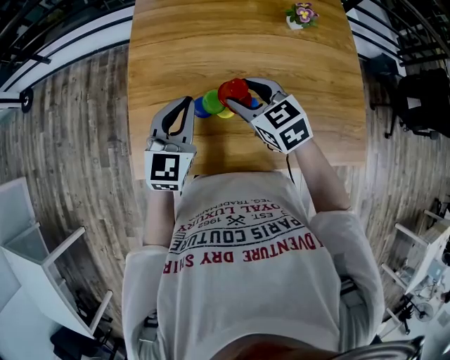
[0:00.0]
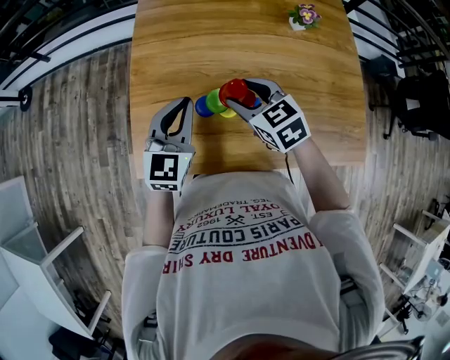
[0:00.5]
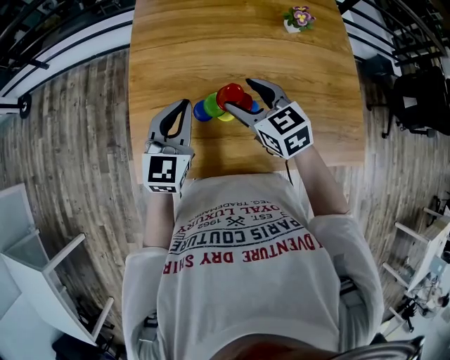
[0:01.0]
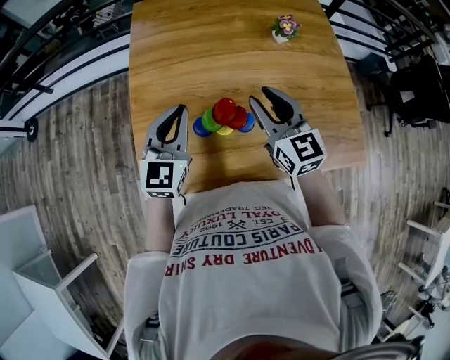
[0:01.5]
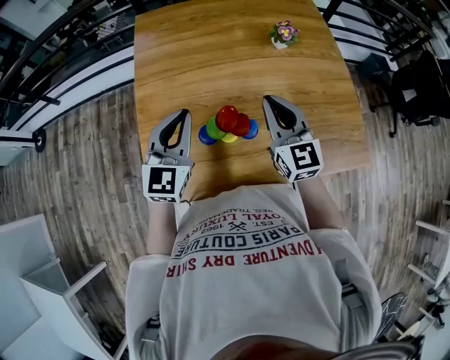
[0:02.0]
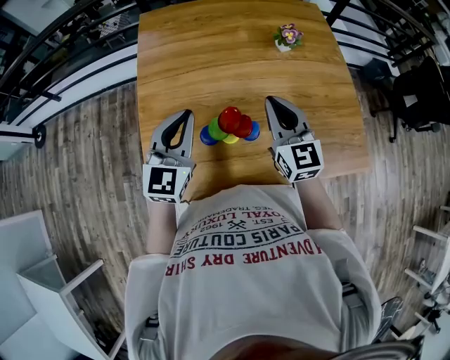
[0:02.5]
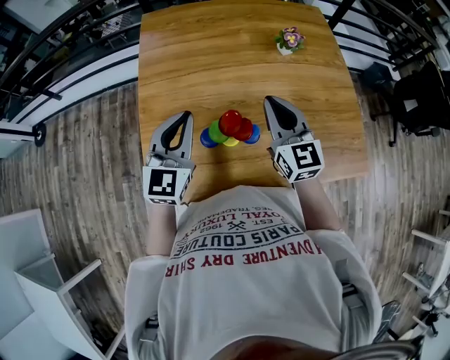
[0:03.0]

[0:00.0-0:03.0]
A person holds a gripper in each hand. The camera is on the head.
0:00.0 to 0:01.5: The right gripper heads upward and to the right, covering about 10 cm, and turns by approximately 30 degrees.
0:01.5 to 0:03.0: The right gripper closes up.

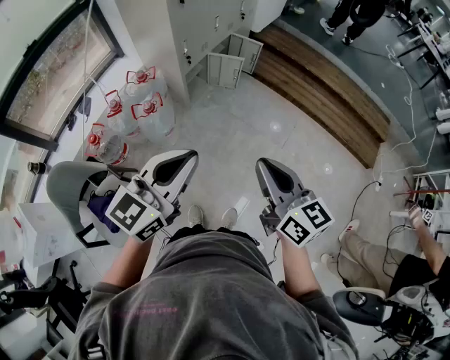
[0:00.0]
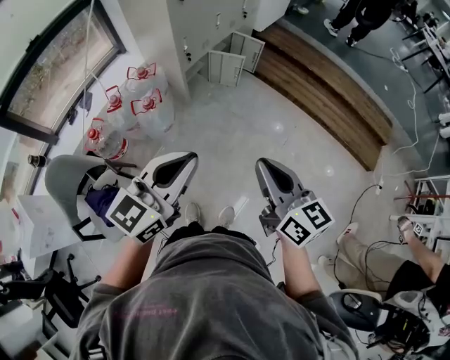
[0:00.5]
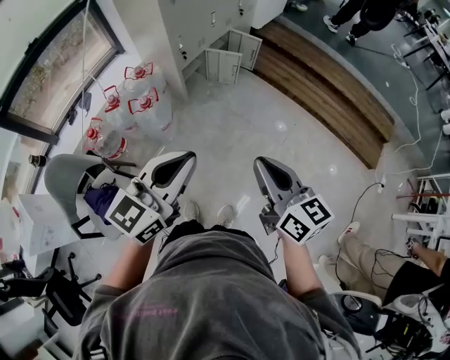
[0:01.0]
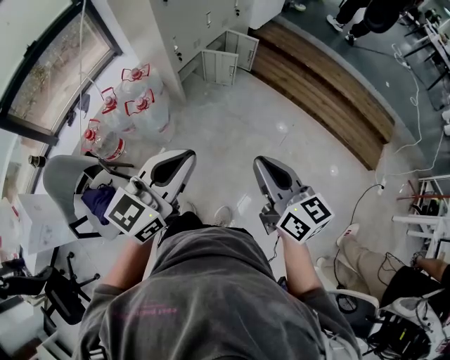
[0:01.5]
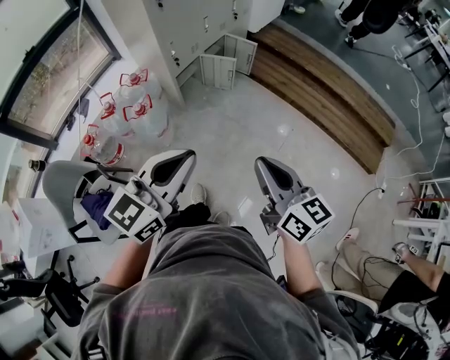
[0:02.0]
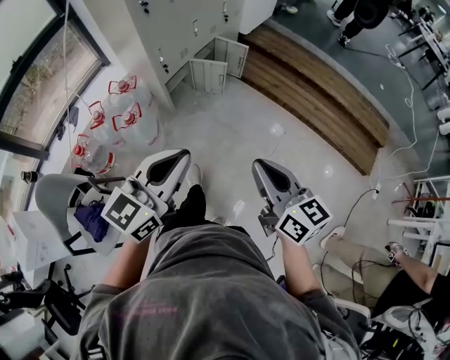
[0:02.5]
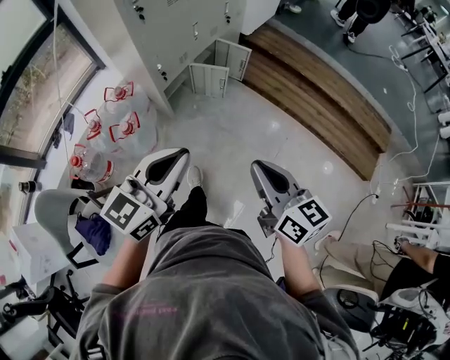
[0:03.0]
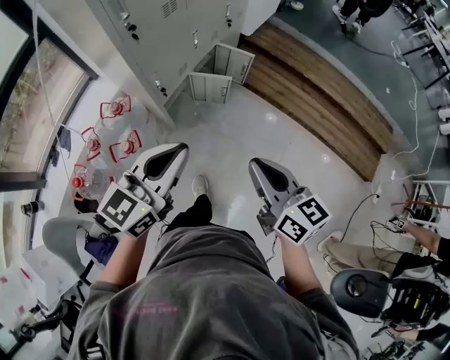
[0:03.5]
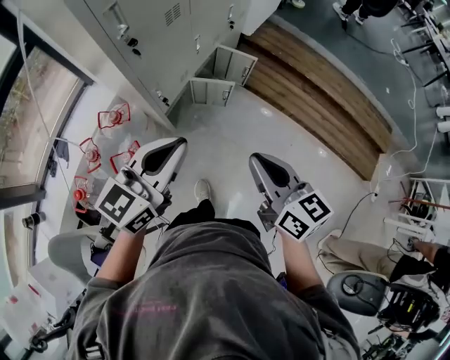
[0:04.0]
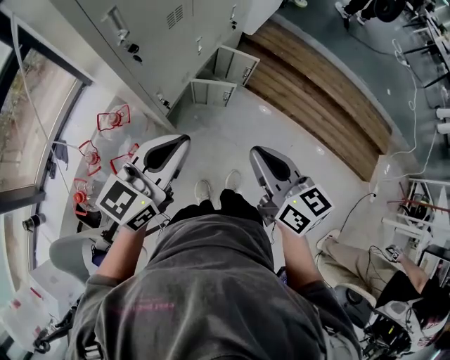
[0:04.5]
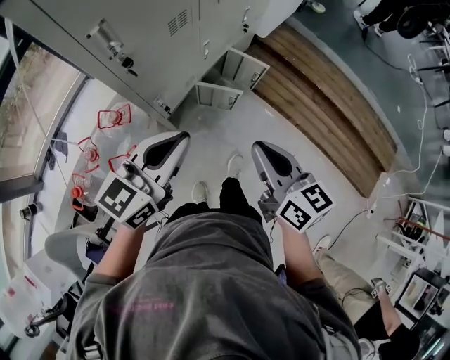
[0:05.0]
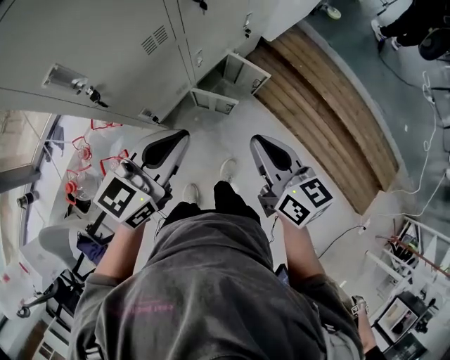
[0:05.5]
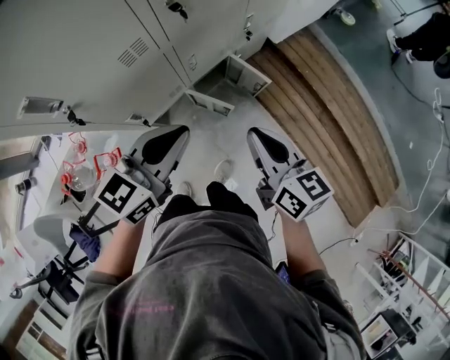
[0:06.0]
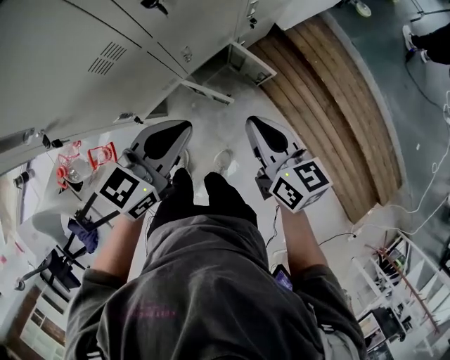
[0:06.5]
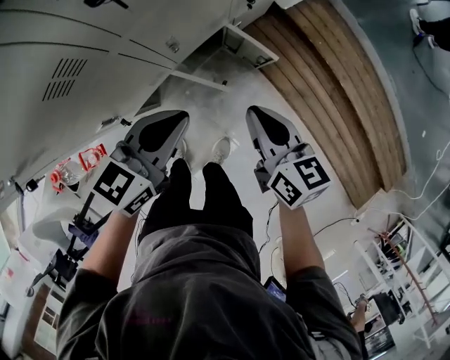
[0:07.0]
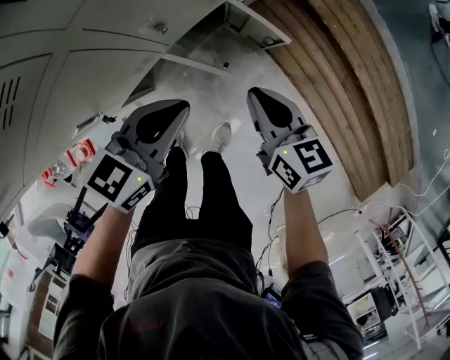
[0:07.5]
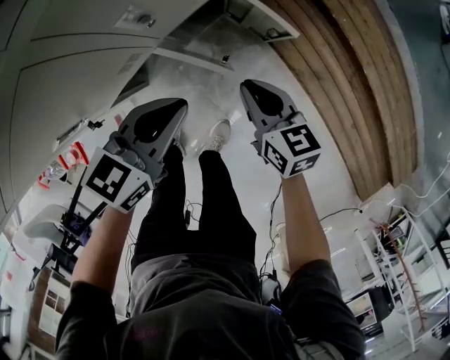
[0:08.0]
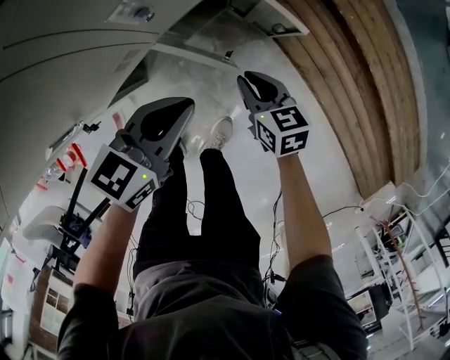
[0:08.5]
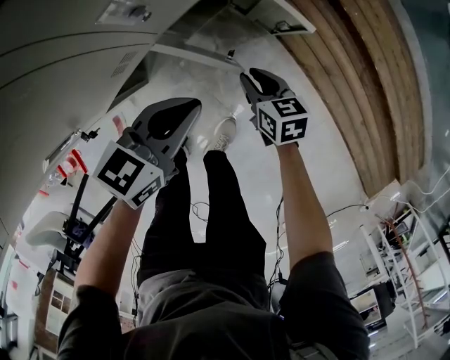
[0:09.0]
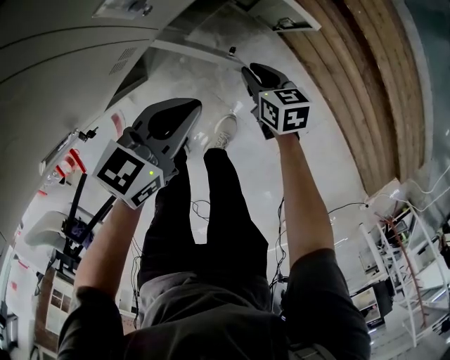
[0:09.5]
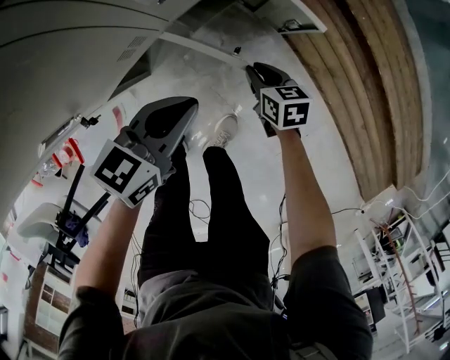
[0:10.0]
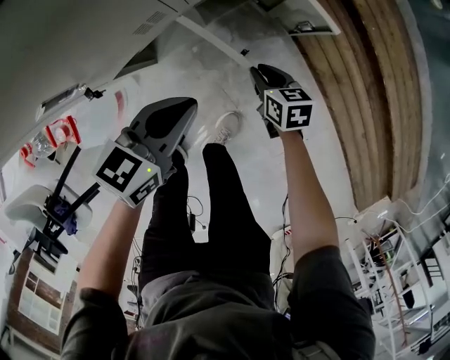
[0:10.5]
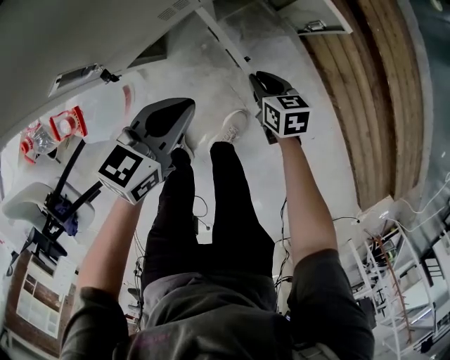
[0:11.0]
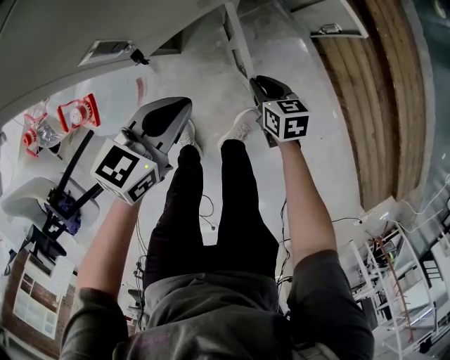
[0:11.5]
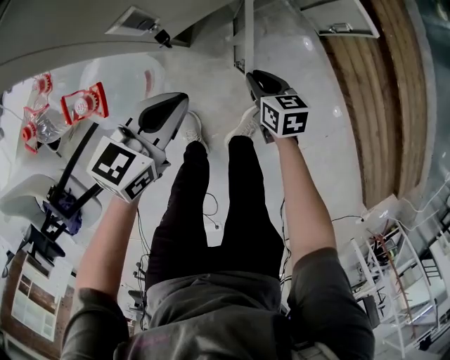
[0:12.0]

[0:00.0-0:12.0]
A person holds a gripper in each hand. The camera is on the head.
0:00.0 to 0:02.0: Both grippers travel together to the right, roughly 10 cm.
0:02.0 to 0:04.0: The two grippers go roughly 40 cm forward.
0:04.0 to 0:06.0: The two grippers go approximately 30 cm forward.
0:06.0 to 0:08.0: The grippers both shift downward by approximately 35 cm.
0:08.0 to 0:10.0: The right gripper moves downward, about 20 cm. The left gripper moves downward, some 10 cm.
0:10.0 to 0:12.0: The two grippers go roughly 25 cm to the left and backward.

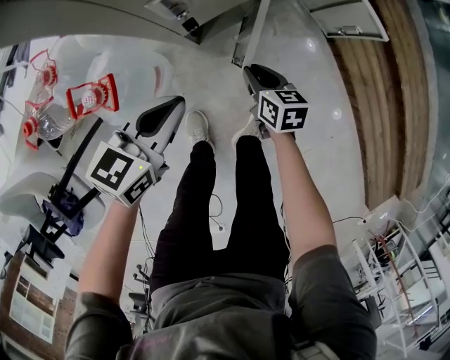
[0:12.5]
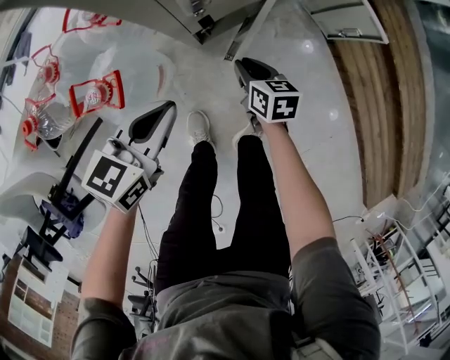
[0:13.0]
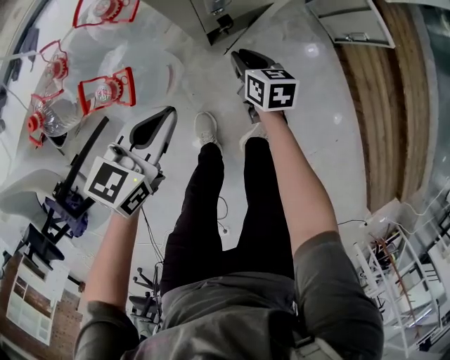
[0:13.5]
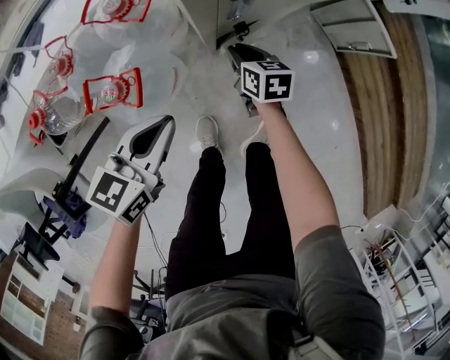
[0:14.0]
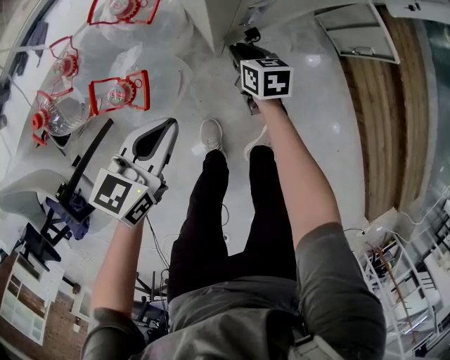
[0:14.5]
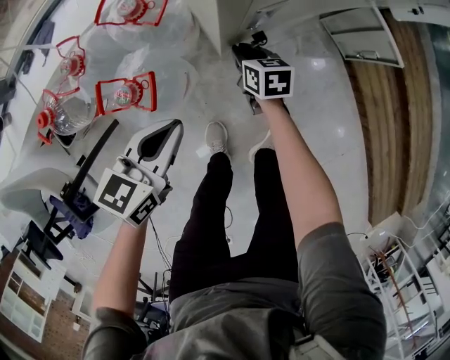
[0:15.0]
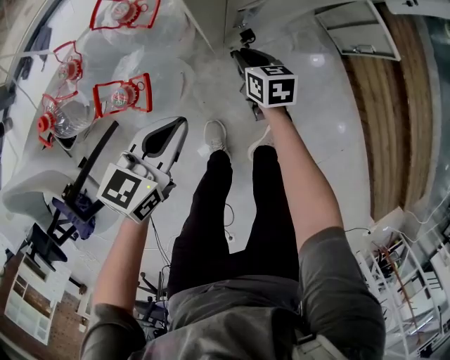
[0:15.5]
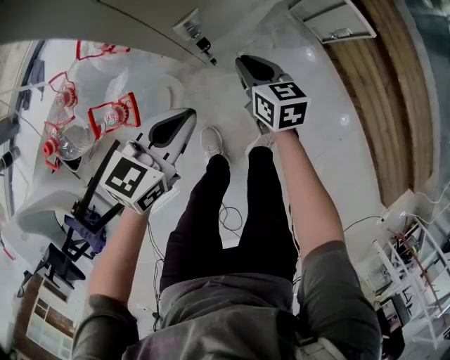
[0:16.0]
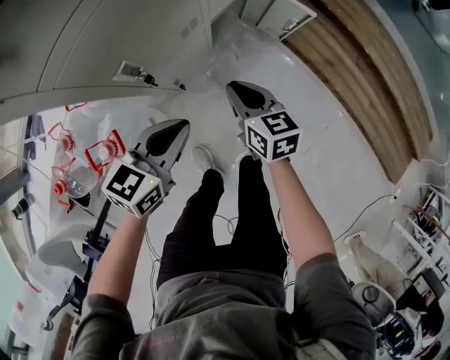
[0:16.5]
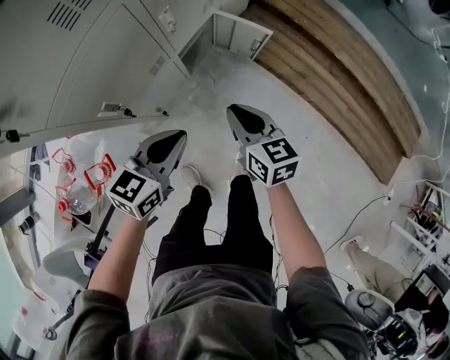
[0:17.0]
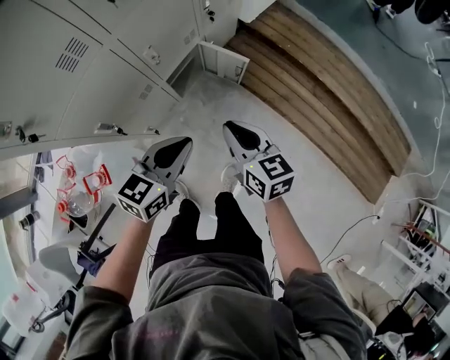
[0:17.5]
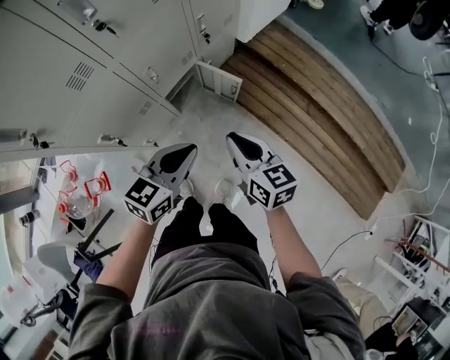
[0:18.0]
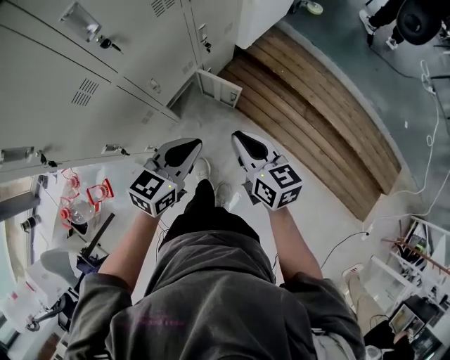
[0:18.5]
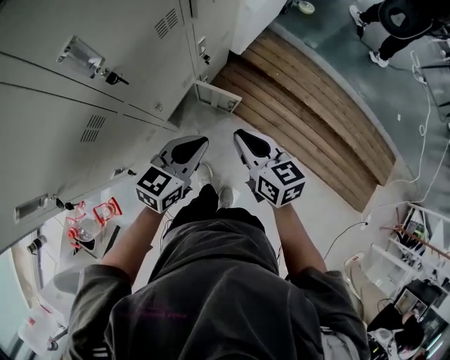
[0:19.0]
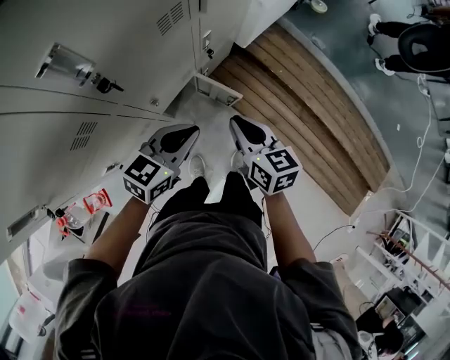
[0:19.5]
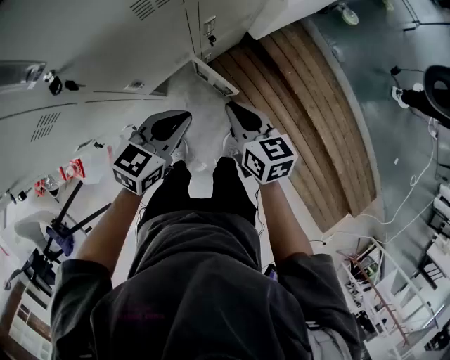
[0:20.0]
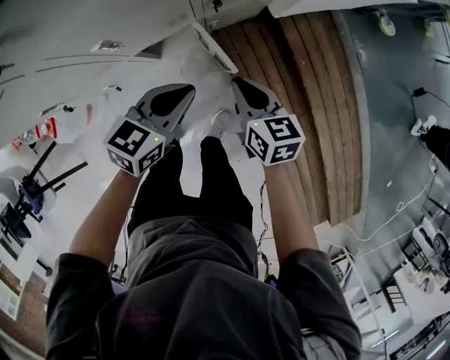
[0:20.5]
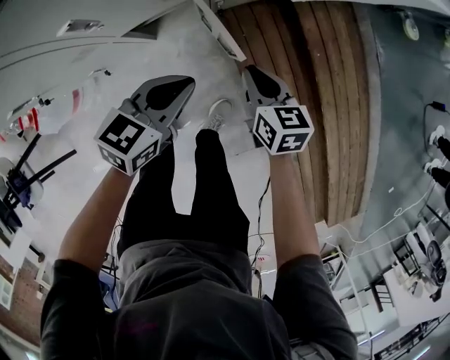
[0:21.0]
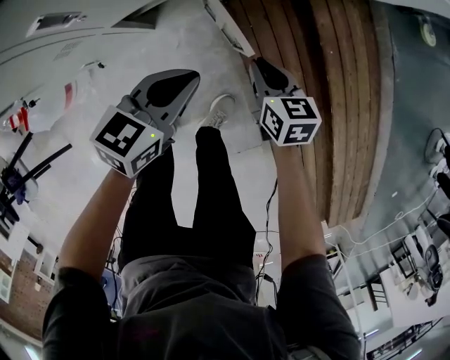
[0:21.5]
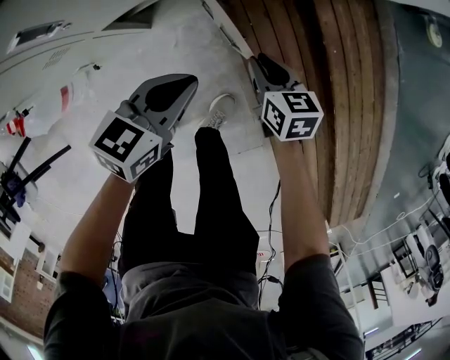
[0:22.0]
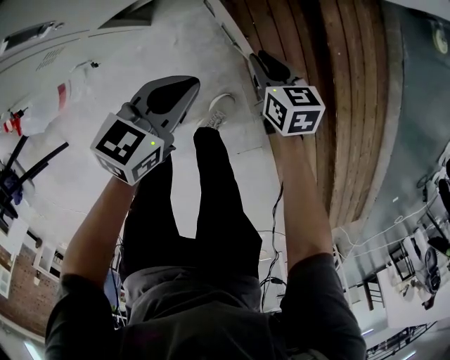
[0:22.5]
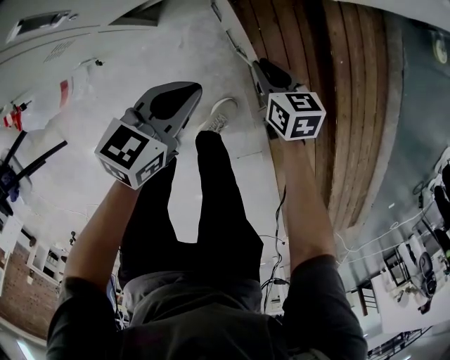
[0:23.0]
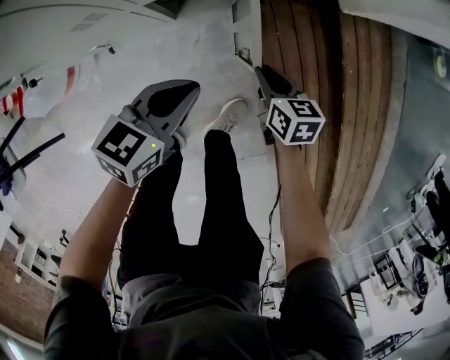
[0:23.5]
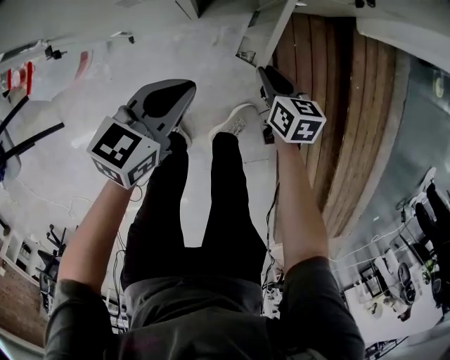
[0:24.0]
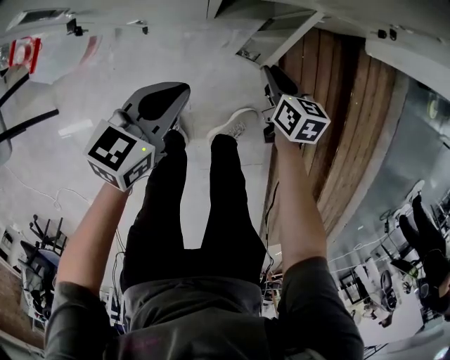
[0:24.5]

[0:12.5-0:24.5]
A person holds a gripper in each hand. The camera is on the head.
0:12.5 to 0:14.5: The left gripper is displaced to the left by approximately 10 cm. The right gripper moves to the left and forward, about 15 cm.
0:14.5 to 0:16.5: The grippers both shift to the right and upward by roughly 25 cm. The left gripper changes its angle by roughly 30 degrees. The right gripper turns by some 20 degrees.
0:16.5 to 0:18.5: The right gripper travels upward and to the right by some 40 cm; the left gripper shifts some 40 cm to the right, upward and forward.
0:18.5 to 0:20.5: The left gripper moves roughly 25 cm, and changes its angle by roughly 30 degrees. The right gripper ends up about 30 cm from where it was, and changes its angle by about 30 degrees.
0:20.5 to 0:22.5: The two grippers go about 25 cm downward.
0:22.5 to 0:24.5: Both grippers travel together to the left, some 25 cm.
